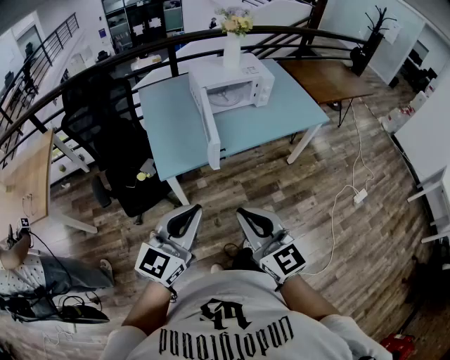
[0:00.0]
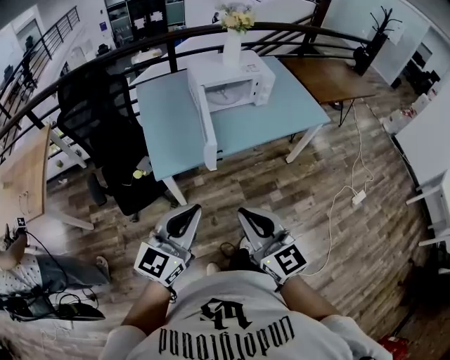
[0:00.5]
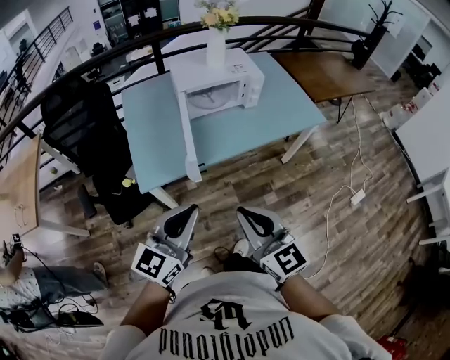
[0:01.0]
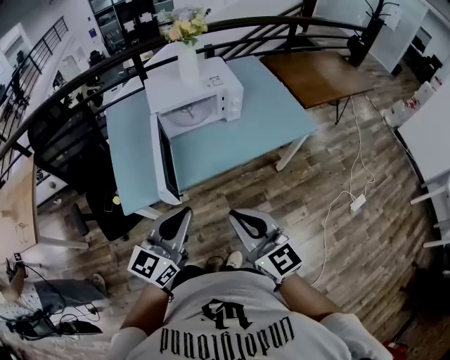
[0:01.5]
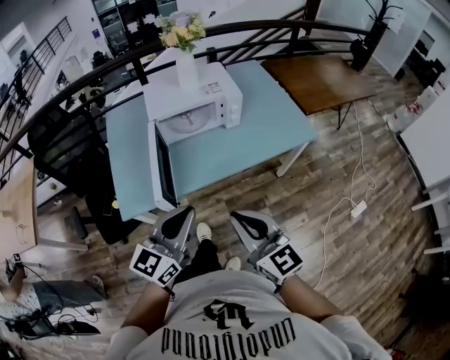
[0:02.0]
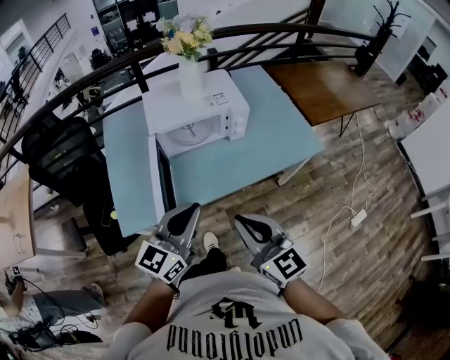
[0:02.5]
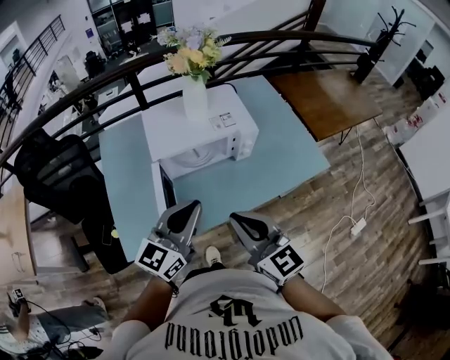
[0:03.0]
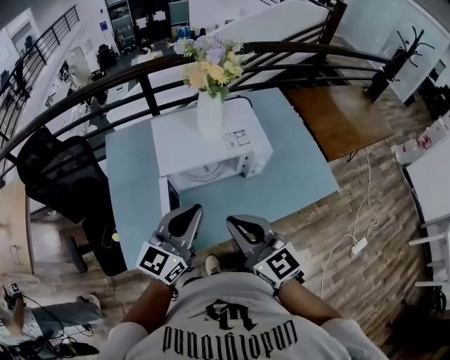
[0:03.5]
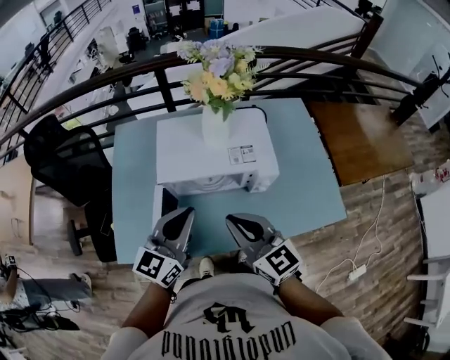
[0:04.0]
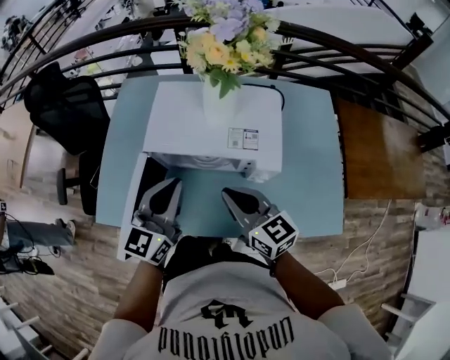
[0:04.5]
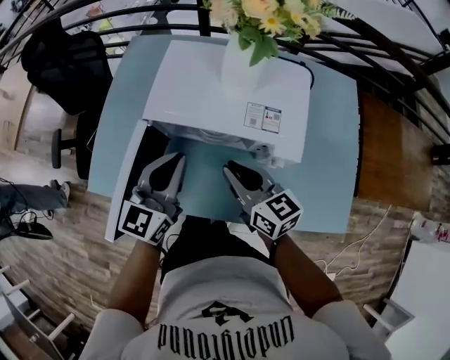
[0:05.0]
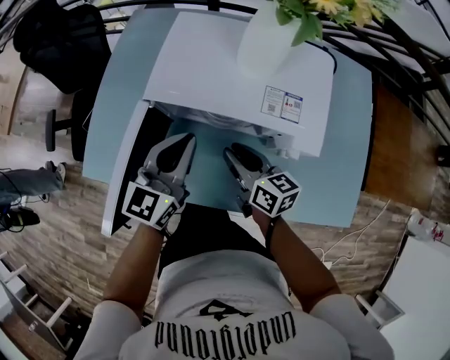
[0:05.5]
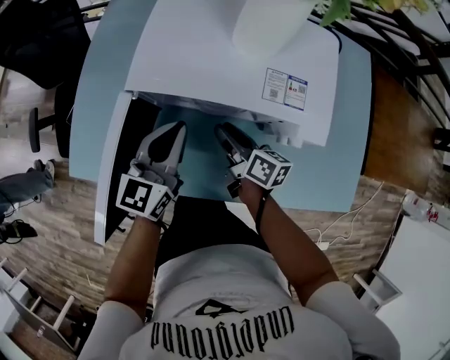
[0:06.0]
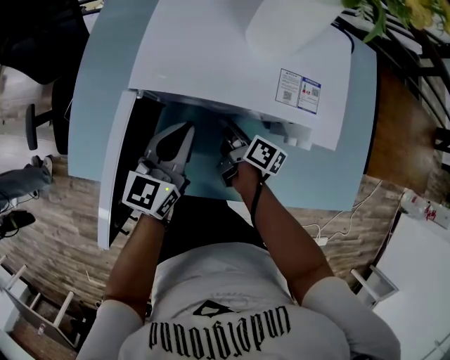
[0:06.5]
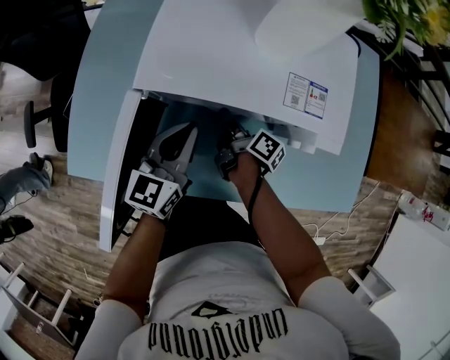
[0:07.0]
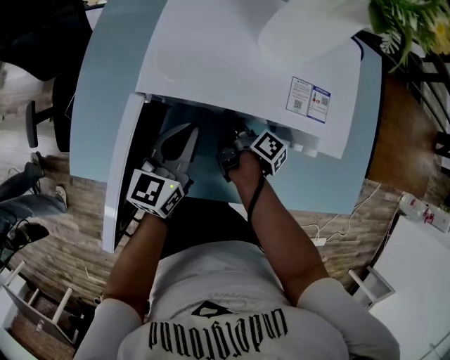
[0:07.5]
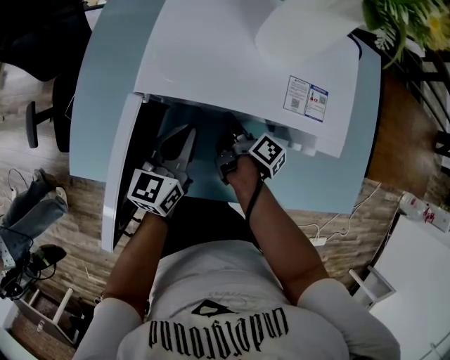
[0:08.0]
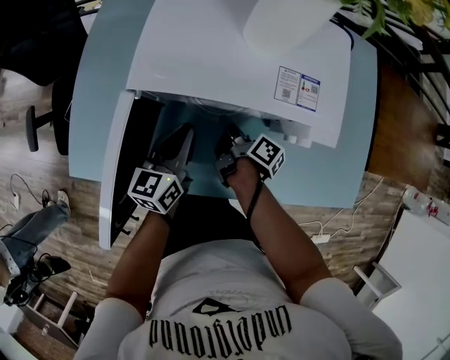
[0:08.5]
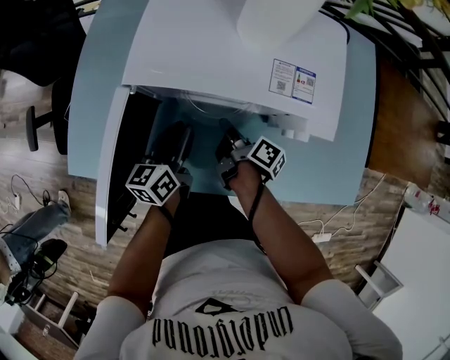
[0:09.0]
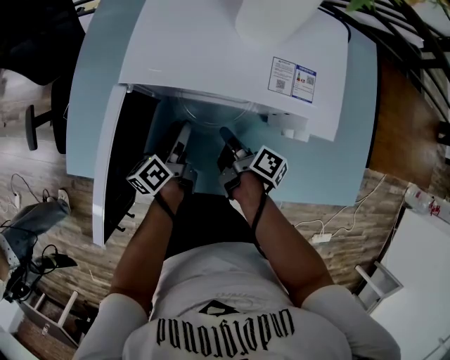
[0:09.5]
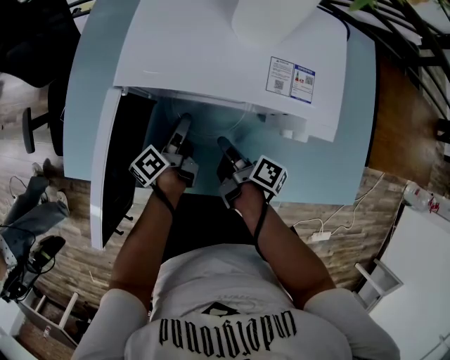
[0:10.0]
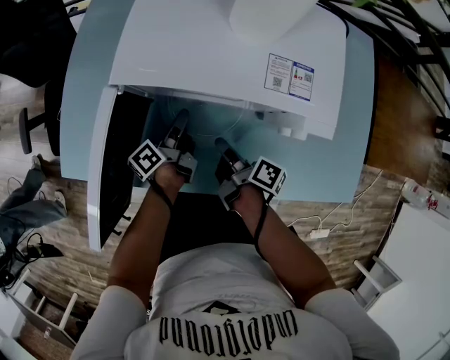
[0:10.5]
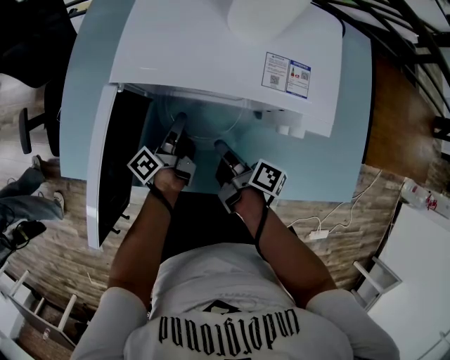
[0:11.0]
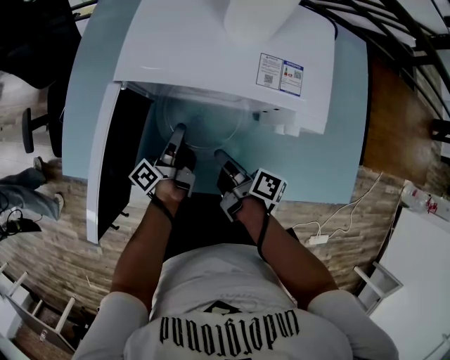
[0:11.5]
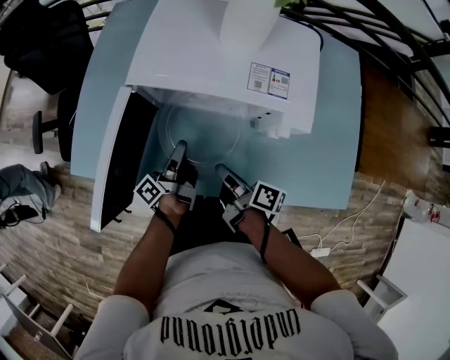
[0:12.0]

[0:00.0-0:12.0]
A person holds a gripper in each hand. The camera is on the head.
0:00.0 to 0:02.0: Both grippers travel together forward and to the right, roughly 30 cm.
0:02.0 to 0:04.0: Both grippers travel together forward, about 35 cm.
0:04.0 to 0:06.0: The left gripper is displaced downward and forward by roughly 20 cm, and swivels about 20 degrees, while the right gripper moves downward and forward, some 35 cm, twists approximately 50 degrees clockwise, seen from behind, and opens its fingers.
0:06.0 to 0:08.0: Both grippers move downward, roughly 5 cm. The right gripper swivels about 40 degrees.
0:08.0 to 0:10.0: The right gripper goes approximately 10 cm backward; the left gripper heads downward, covering some 10 cm, rotates around the line of its fingers by roughly 50 degrees, counterclockwise from behind, and opens its fingers.
0:10.0 to 0:12.0: Both grippers travel together backward and upward, approximately 10 cm. The left gripper rotates roughly 20 degrees, and closes.

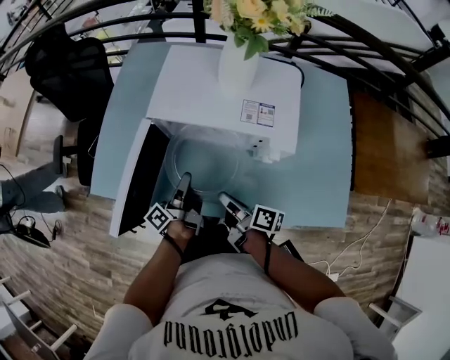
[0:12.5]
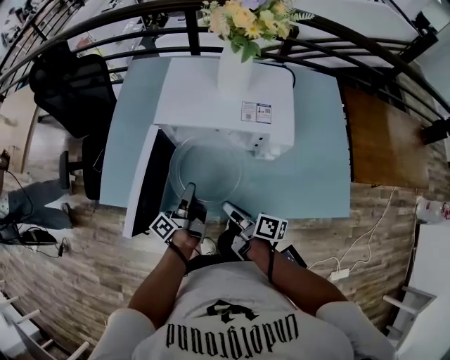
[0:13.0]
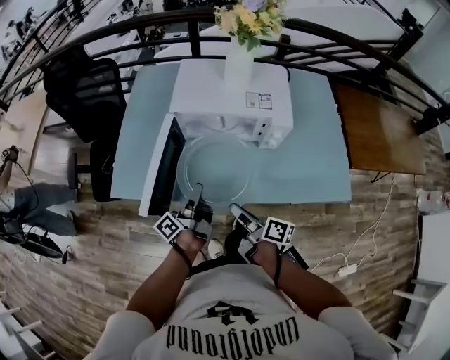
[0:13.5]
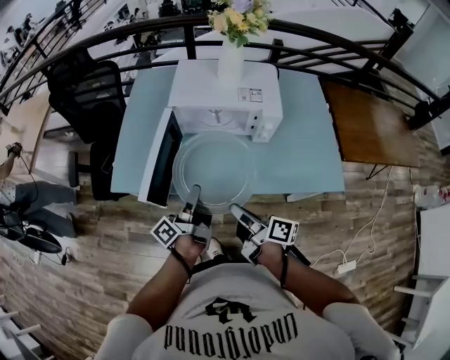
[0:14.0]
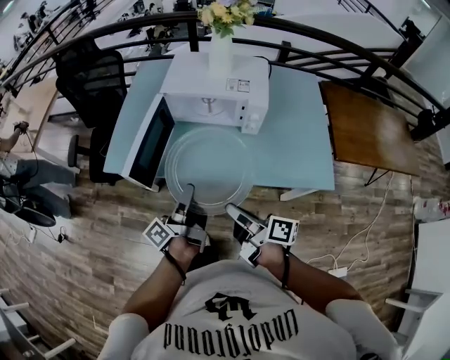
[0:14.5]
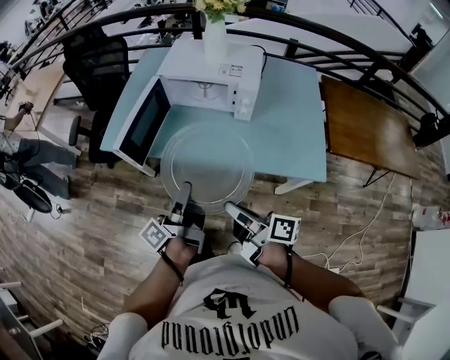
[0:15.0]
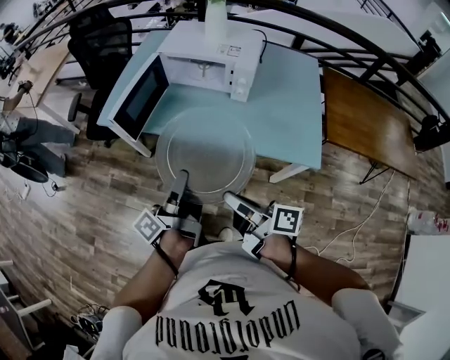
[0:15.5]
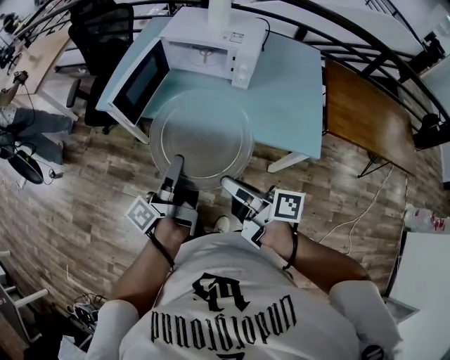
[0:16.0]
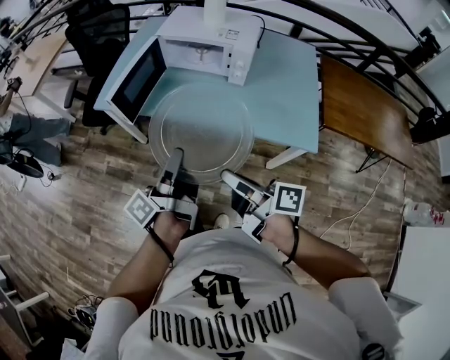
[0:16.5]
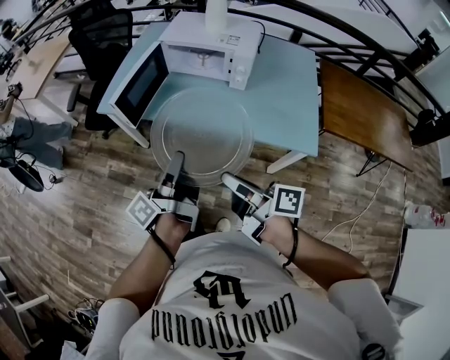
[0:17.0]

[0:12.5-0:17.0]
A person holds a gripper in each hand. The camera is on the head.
0:12.5 to 0:14.5: Both grippers move backward and upward, about 30 cm.
0:14.5 to 0:17.0: Both grippers travel together backward, some 15 cm.

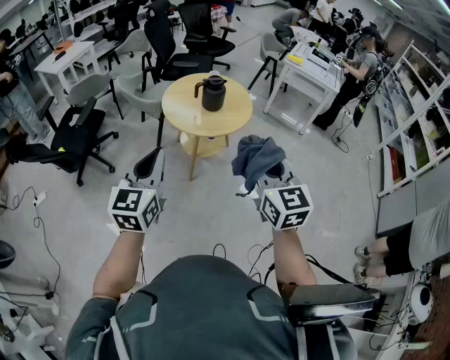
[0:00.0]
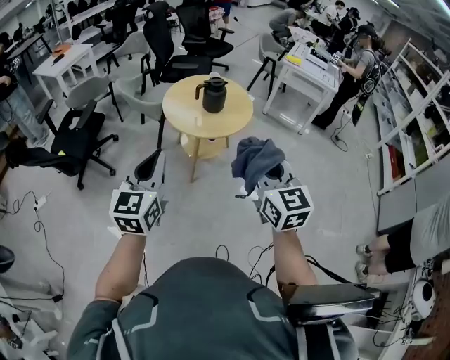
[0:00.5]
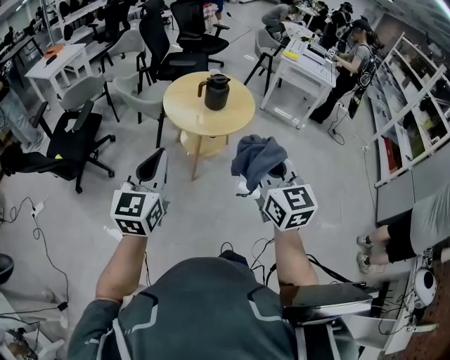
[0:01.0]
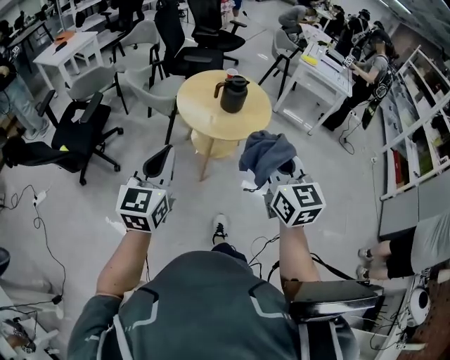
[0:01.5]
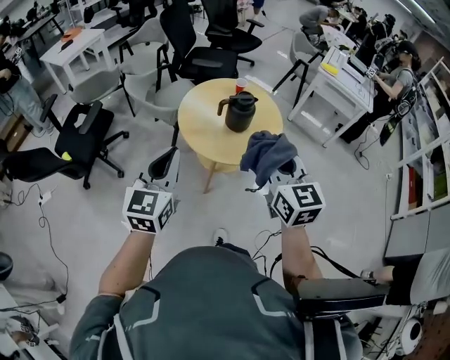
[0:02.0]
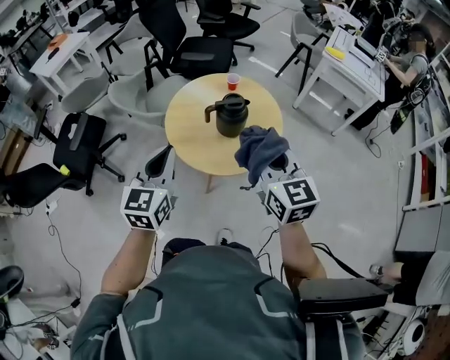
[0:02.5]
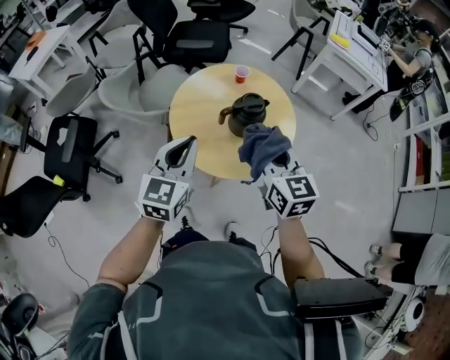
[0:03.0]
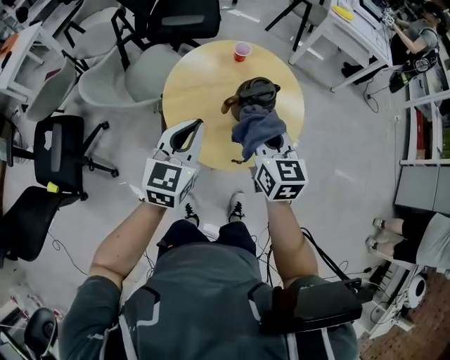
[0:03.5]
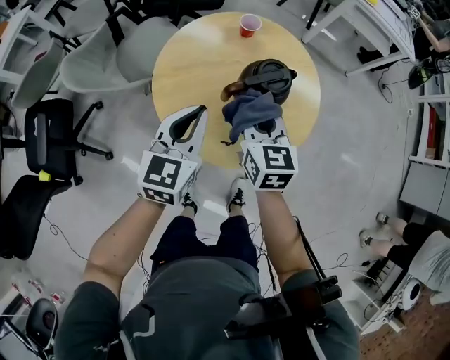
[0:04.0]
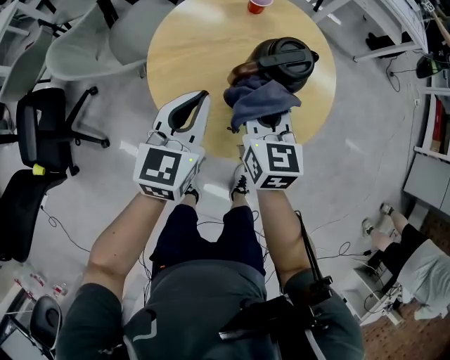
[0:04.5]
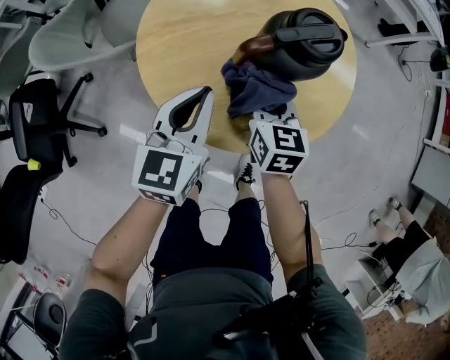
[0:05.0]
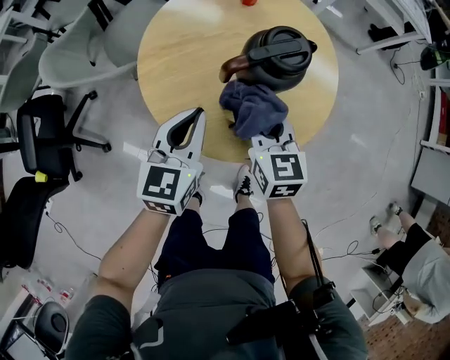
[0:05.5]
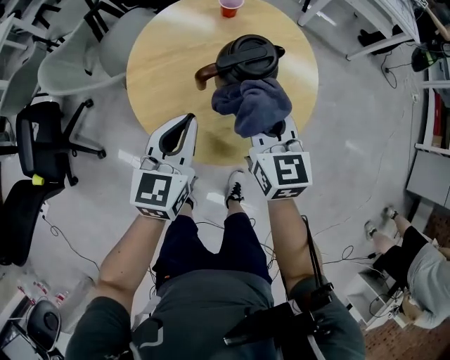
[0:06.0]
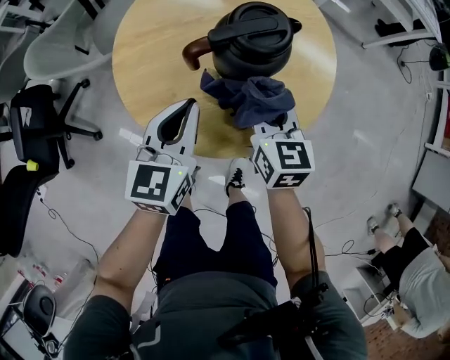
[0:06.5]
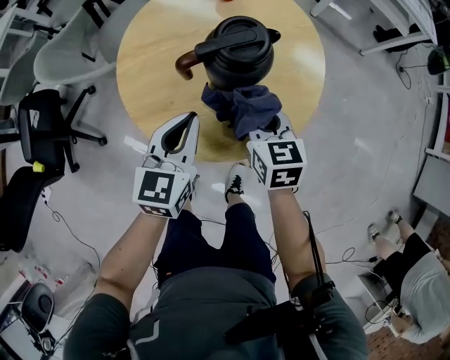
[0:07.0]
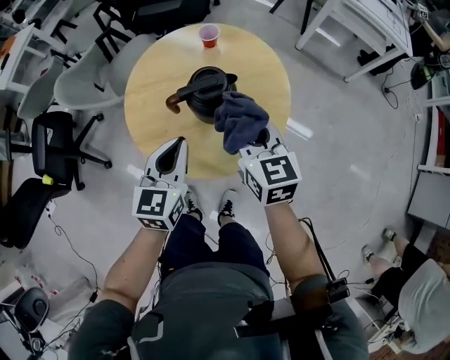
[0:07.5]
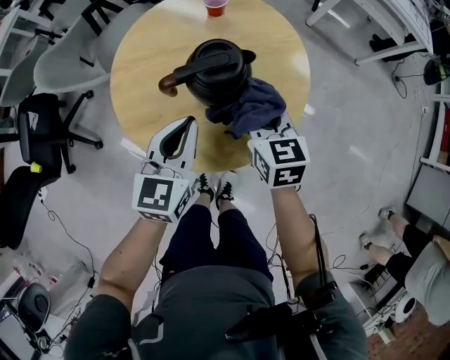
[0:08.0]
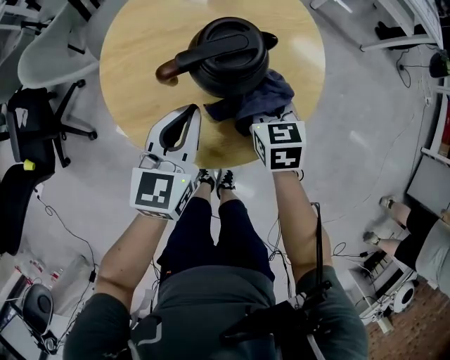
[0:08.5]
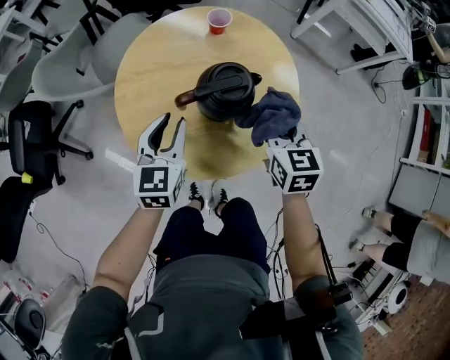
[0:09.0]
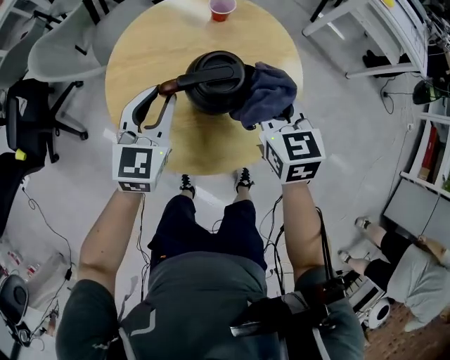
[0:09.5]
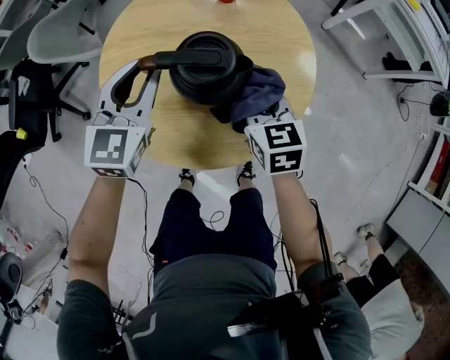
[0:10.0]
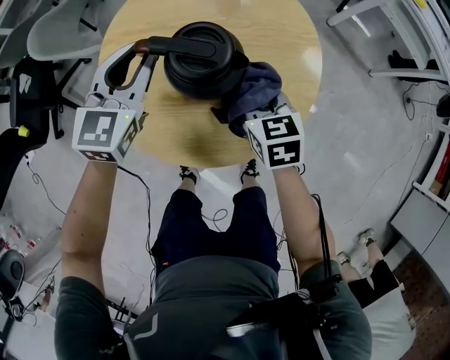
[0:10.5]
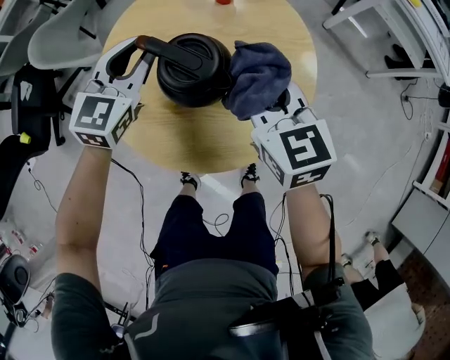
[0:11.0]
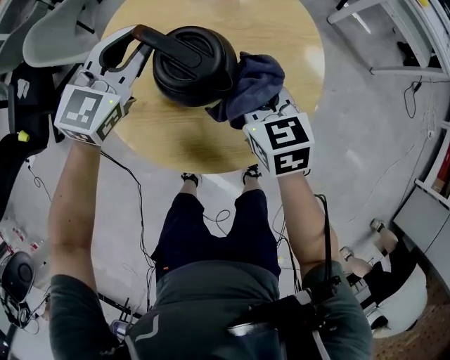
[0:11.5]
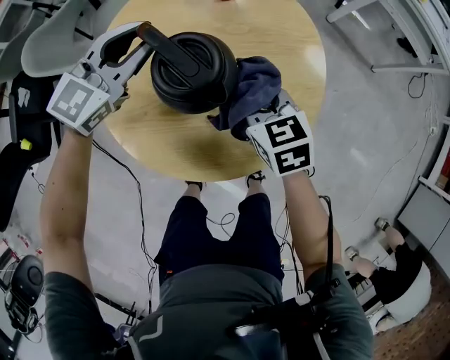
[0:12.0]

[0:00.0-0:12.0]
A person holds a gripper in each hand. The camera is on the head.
0:00.0 to 0:02.0: The two grippers go roughly 25 cm forward.
0:02.0 to 0:04.0: Both grippers move forward and downward, some 40 cm. The right gripper rotates about 20 degrees. The left gripper turns by approximately 20 degrees.
0:04.0 to 0:06.0: The right gripper travels to the right by some 5 cm, and moves approximately 15 cm downward and comes back, while the left gripper goes approximately 5 cm downward.
0:06.0 to 0:08.0: The left gripper moves up and down over about 10 cm, changing direction 2 times, while the right gripper goes up and down, about 15 cm each way, reversing 2 times.
0:08.0 to 0:10.0: The right gripper swings up and down, approximately 15 cm each way, with 2 reversals; the left gripper heads forward and to the left, covering roughly 10 cm, and opens up.
0:10.0 to 0:12.0: The right gripper moves approximately 10 cm upward and comes back. The left gripper heads forward, covering about 5 cm, and rotates roughly 30 degrees.
